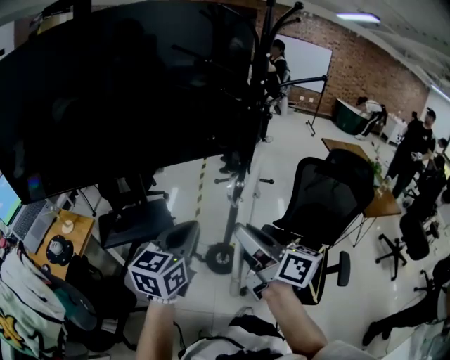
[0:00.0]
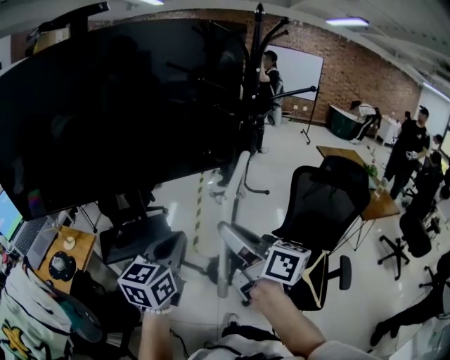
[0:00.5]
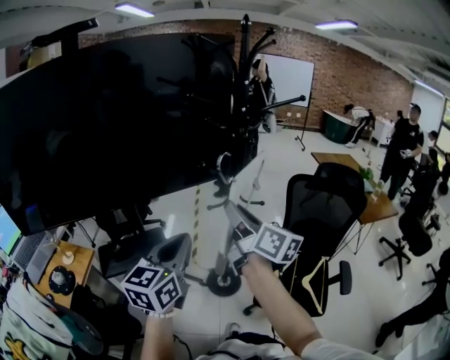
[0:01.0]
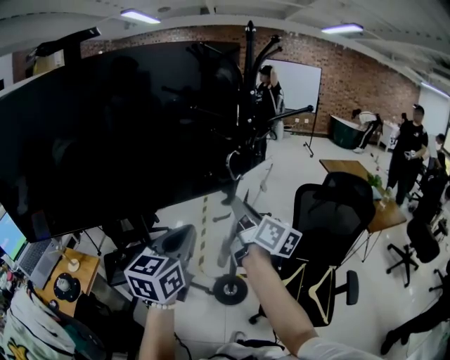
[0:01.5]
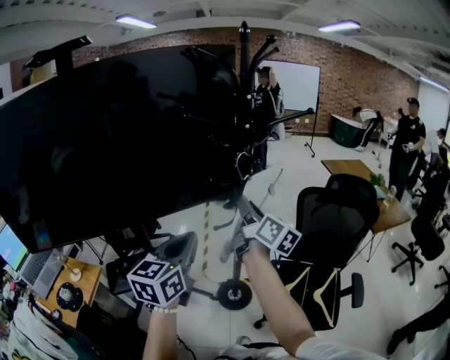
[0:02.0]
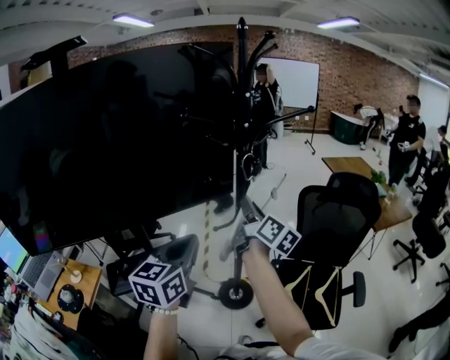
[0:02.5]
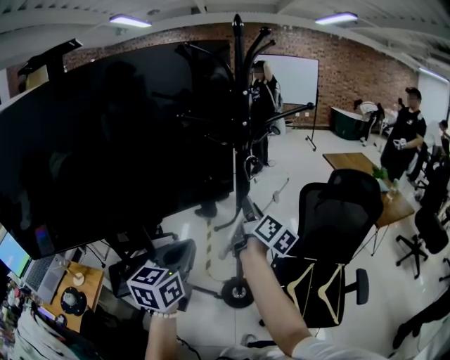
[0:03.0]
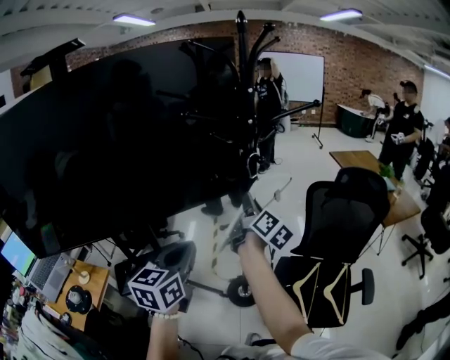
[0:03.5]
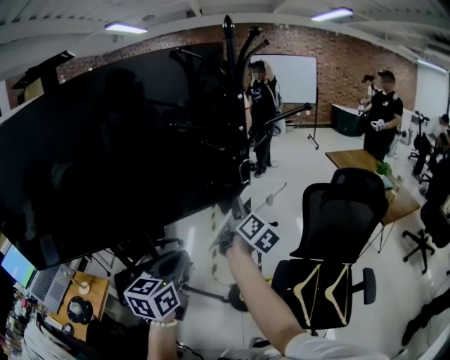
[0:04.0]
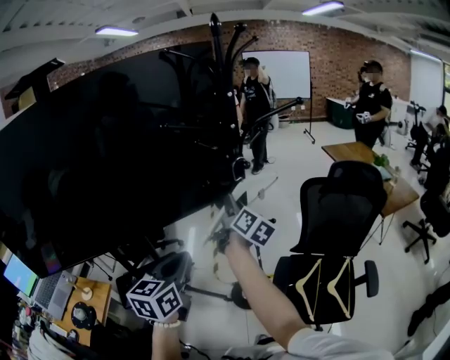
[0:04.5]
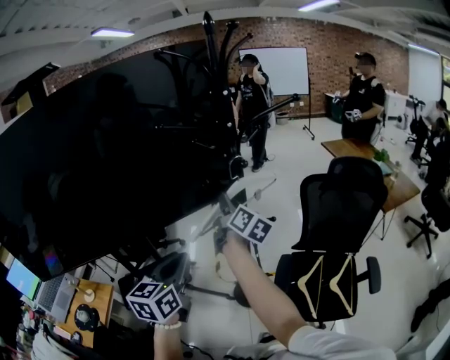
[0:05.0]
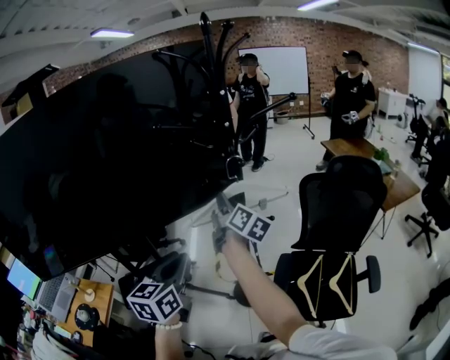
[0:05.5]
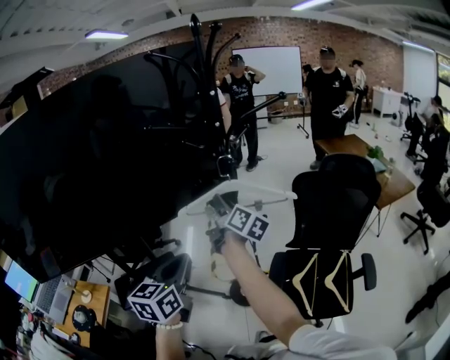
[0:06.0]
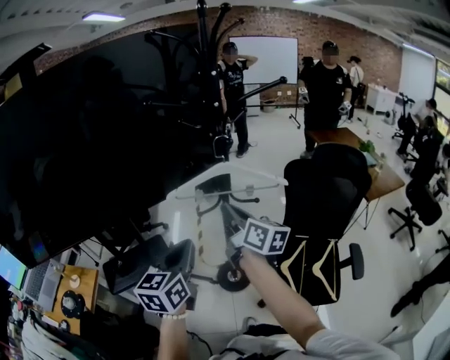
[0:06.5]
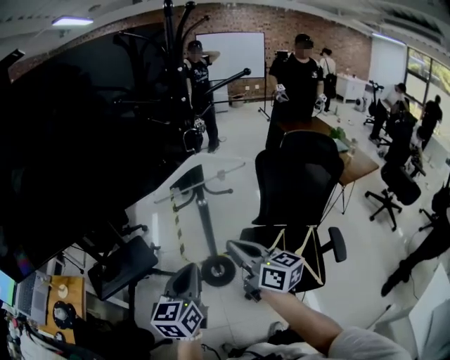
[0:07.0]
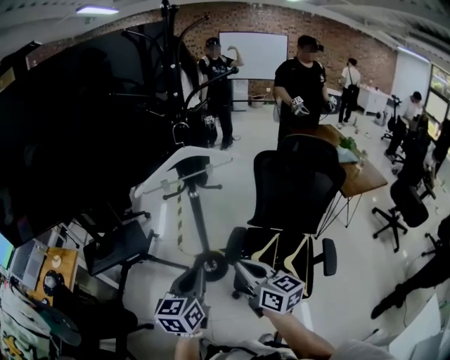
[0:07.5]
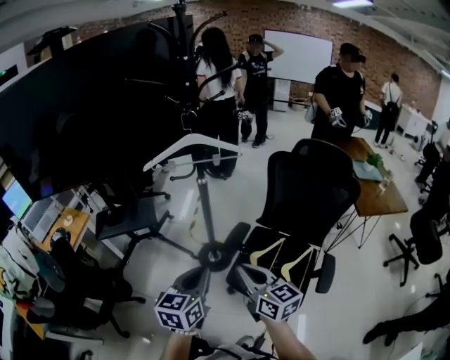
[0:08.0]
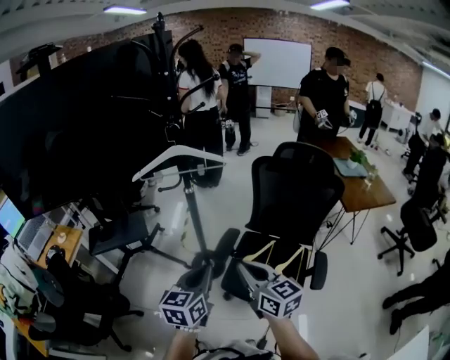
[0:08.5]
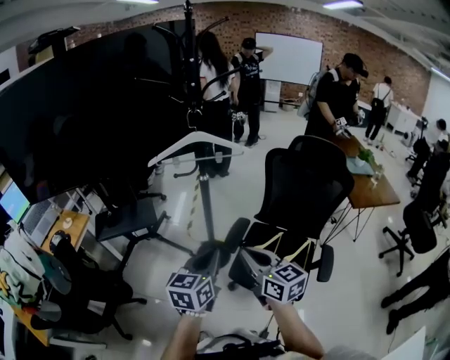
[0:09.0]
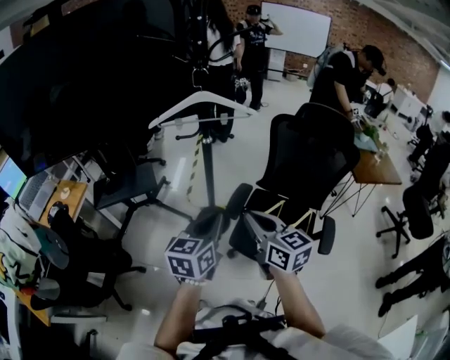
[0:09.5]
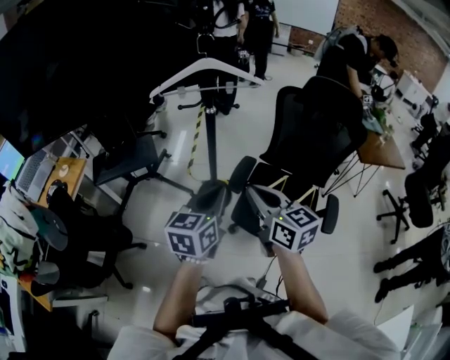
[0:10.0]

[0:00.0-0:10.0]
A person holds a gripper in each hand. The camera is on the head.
0:00.0 to 0:02.0: The left gripper travels forward and upward by roughly 10 cm; the right gripper moves forward, some 20 cm, and swivels approximately 30 degrees.
0:02.0 to 0:04.0: The right gripper travels forward and downward by some 10 cm. Meanwhile the left gripper changes place by about 5 cm.
0:04.0 to 0:06.0: The grippers make only small movements.
0:06.0 to 0:08.0: The left gripper travels to the right, backward and downward by approximately 35 cm. Meanwhile the right gripper is displaced backward and to the right by about 40 cm, rotates approximately 40 degrees, and closes.
0:08.0 to 0:10.0: The grippers move only a little.

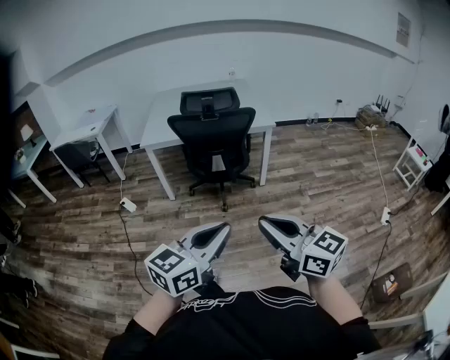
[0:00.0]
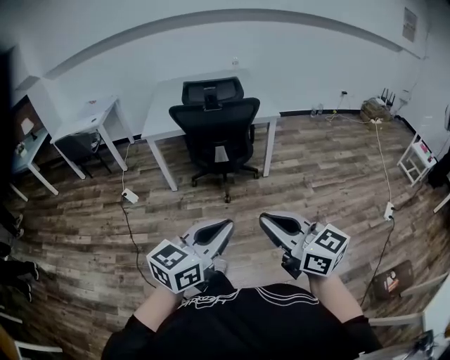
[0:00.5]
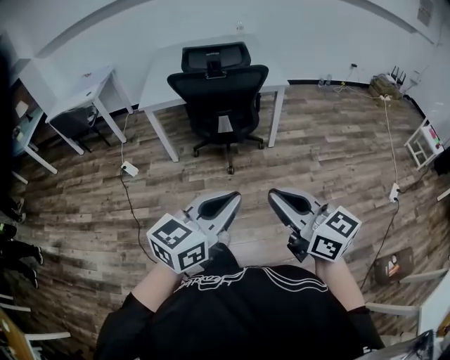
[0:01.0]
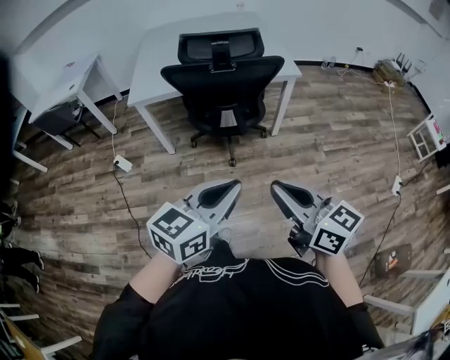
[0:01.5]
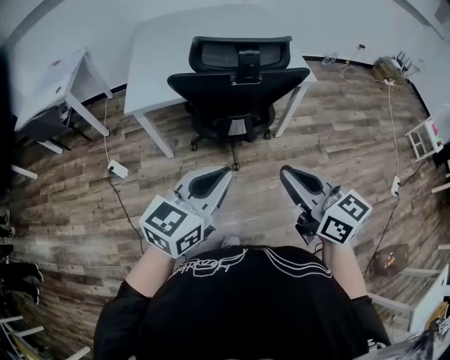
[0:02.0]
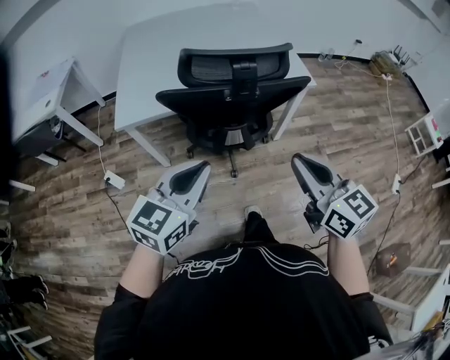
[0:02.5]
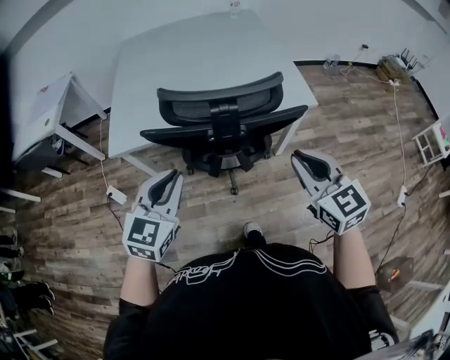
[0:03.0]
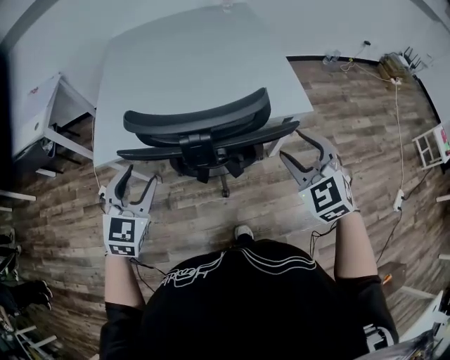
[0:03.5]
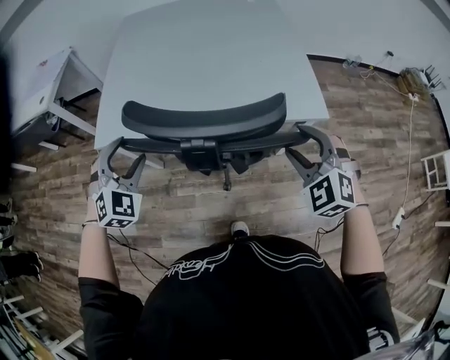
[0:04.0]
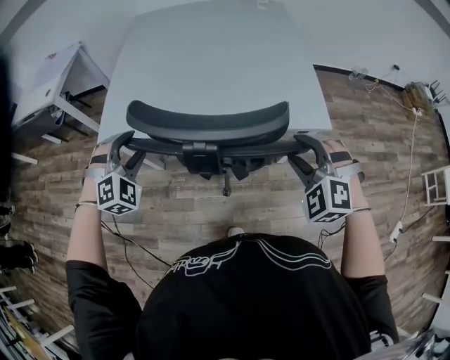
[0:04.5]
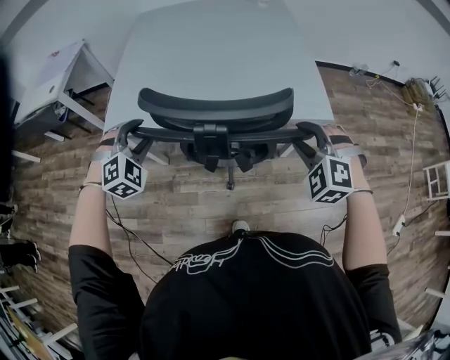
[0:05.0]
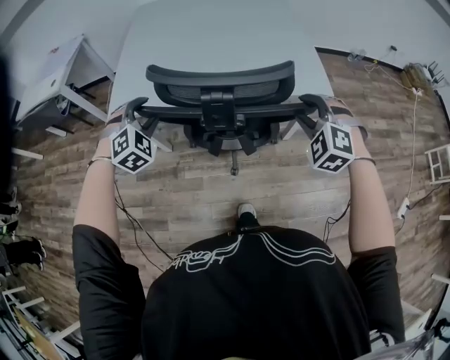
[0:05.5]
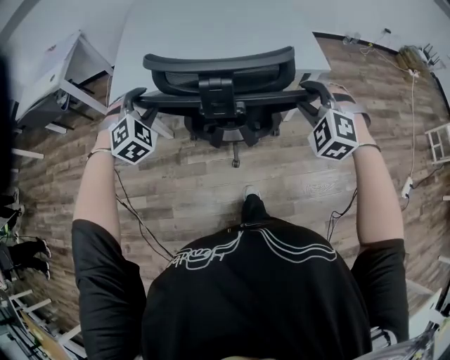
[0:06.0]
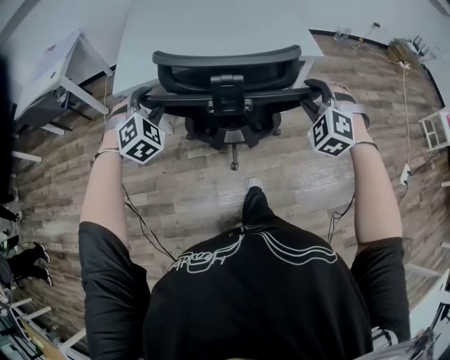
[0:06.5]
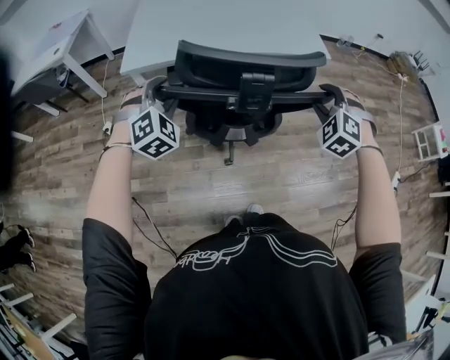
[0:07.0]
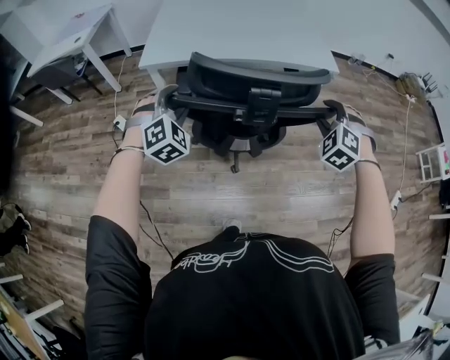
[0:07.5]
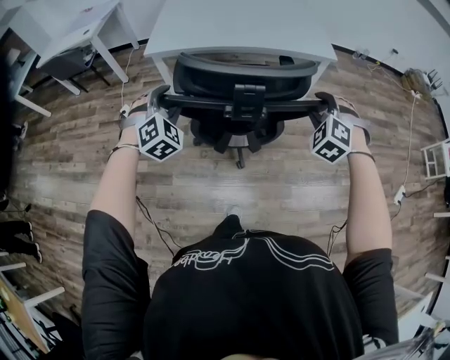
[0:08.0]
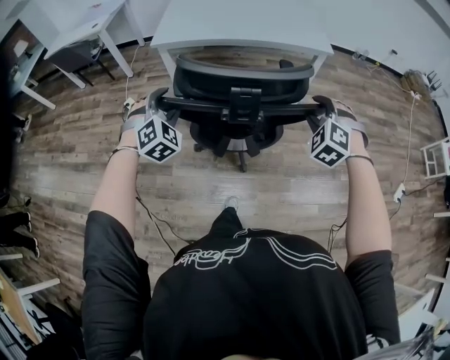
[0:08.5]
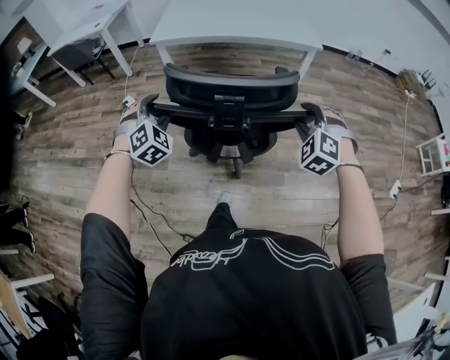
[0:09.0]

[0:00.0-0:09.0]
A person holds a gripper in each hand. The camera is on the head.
0:00.0 to 0:02.0: The right gripper shifts about 35 cm forward; the left gripper moves forward and to the left, roughly 40 cm.
0:02.0 to 0:04.5: The left gripper goes about 35 cm forward, swivels about 80 degrees, and opens its fingers. The right gripper is displaced forward and to the right by about 40 cm, rotates around the line of its fingers by roughly 80 degrees, counterclockwise from behind, and opens up.
0:04.5 to 0:07.0: The two grippers go approximately 20 cm backward.
0:07.0 to 0:09.0: The grippers both shift backward by approximately 30 cm.

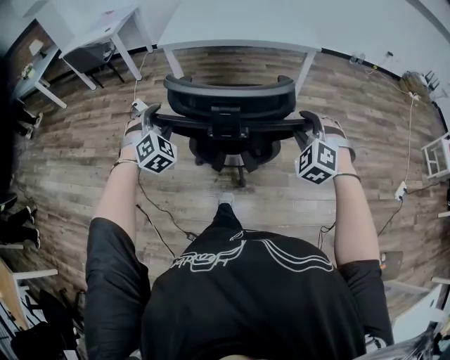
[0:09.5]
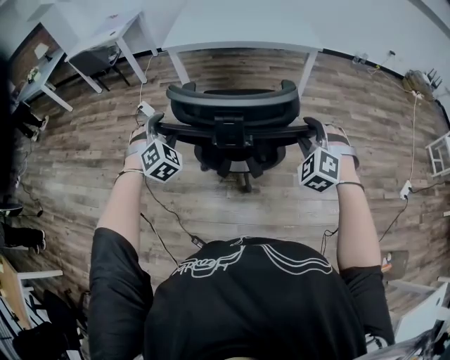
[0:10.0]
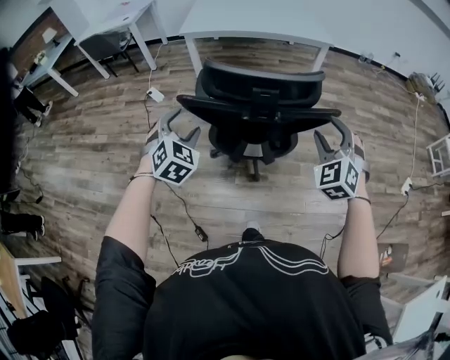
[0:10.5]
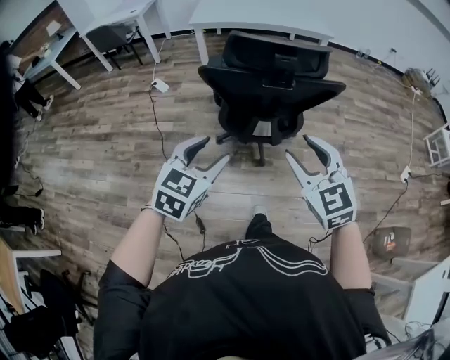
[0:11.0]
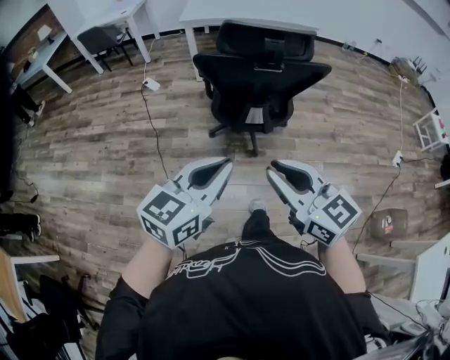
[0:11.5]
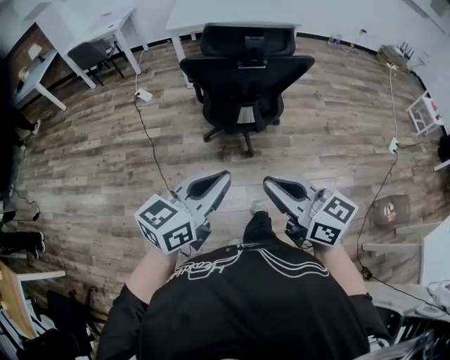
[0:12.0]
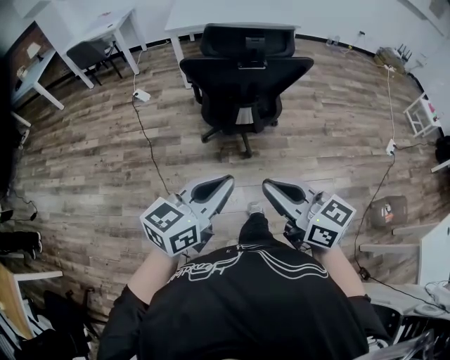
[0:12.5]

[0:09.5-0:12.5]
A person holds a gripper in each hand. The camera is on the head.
0:09.5 to 0:11.0: The right gripper moves backward and to the left, some 35 cm, and rolls clockwise, seen from behind, by roughly 40 degrees. Meanwhile the left gripper moves backward, about 30 cm, and swivels roughly 50 degrees.
0:11.0 to 0:12.5: The two grippers go about 20 cm backward. The right gripper swivels approximately 40 degrees, and closes; the left gripper swivels roughly 30 degrees, and closes up.

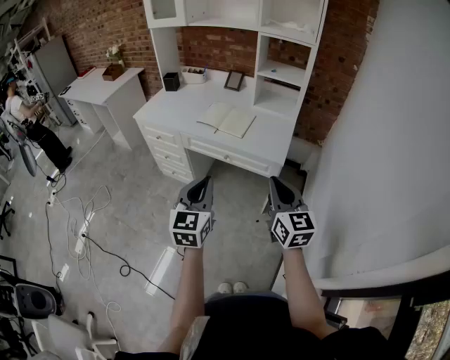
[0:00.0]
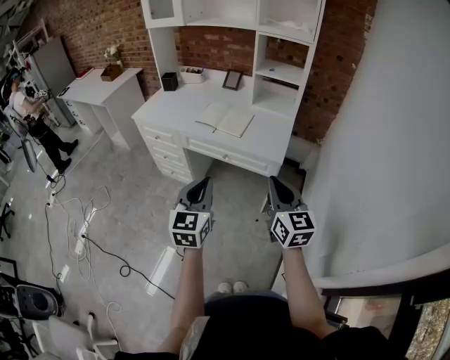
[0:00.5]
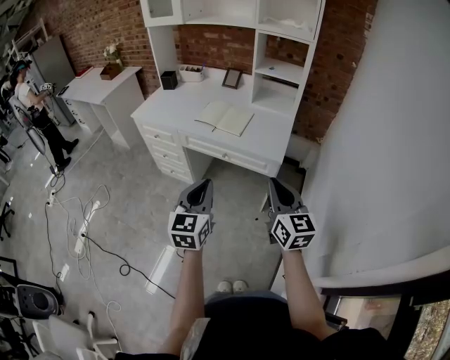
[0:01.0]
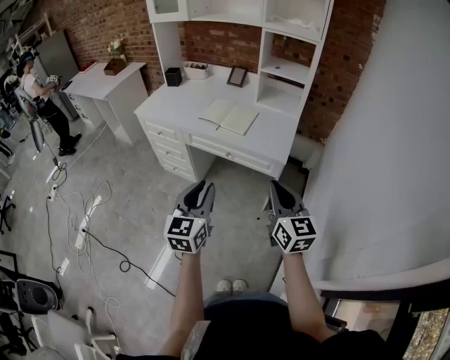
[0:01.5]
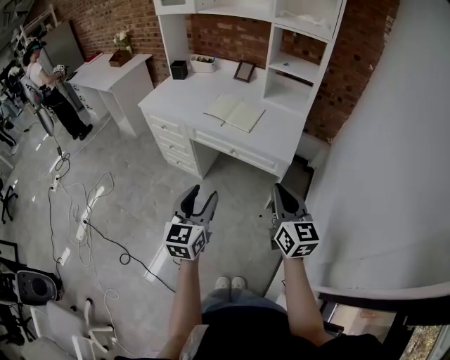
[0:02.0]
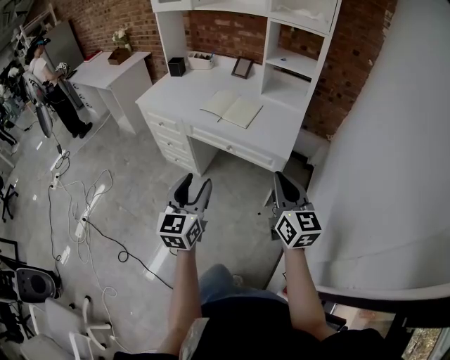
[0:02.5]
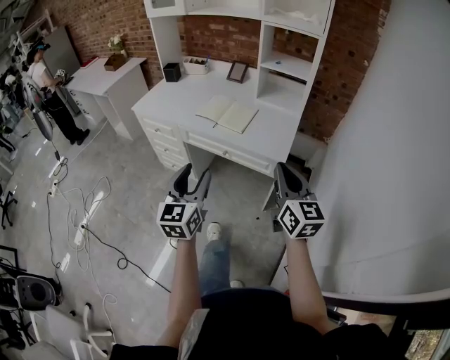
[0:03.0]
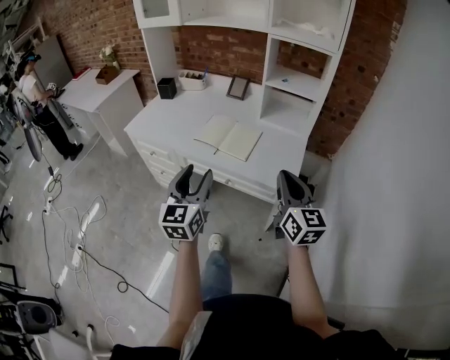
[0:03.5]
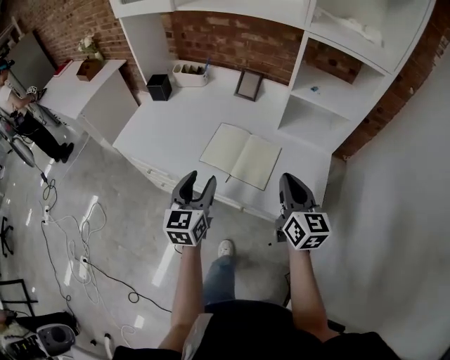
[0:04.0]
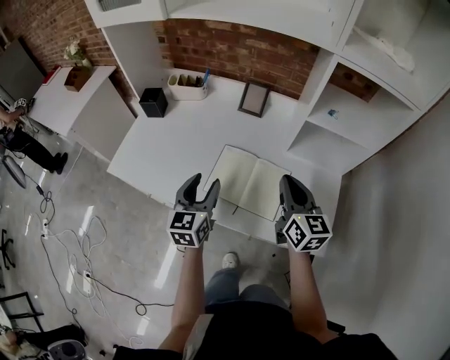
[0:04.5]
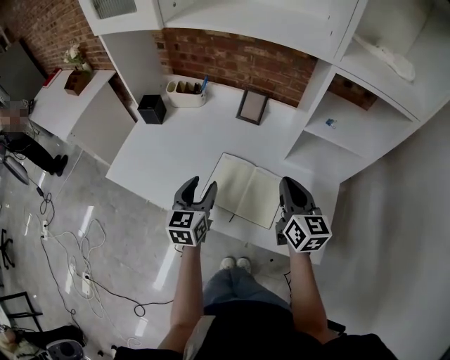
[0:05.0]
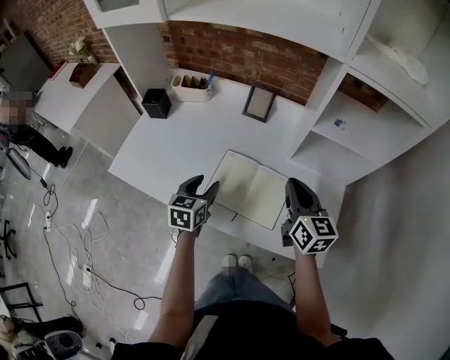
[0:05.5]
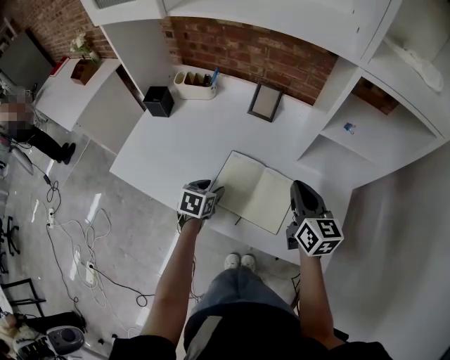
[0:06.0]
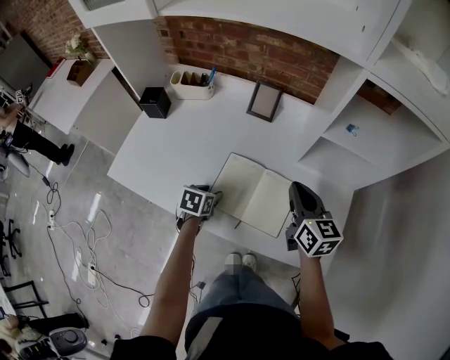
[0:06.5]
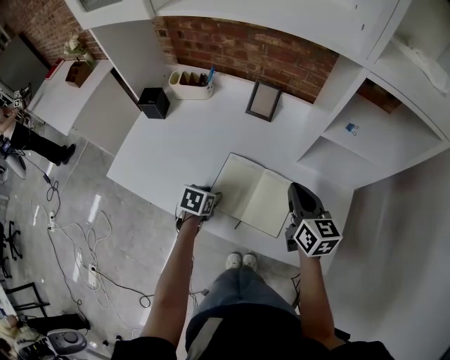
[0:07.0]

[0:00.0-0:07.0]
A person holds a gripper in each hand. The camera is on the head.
0:00.0 to 0:02.0: The left gripper opens.
0:02.0 to 0:03.5: The two grippers go roughly 20 cm forward.
0:03.5 to 0:05.0: The grippers both shift forward by approximately 35 cm.
0:05.0 to 0:07.0: The left gripper goes some 20 cm downward, and angles its fingers downward, by some 40 degrees. Meanwhile the right gripper goes some 5 cm downward.
